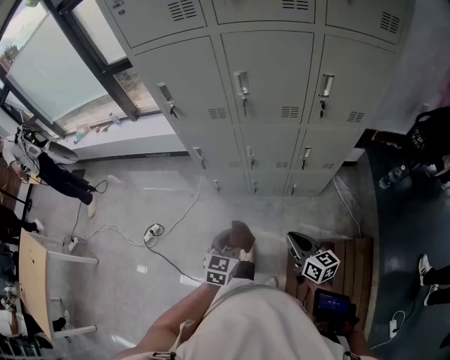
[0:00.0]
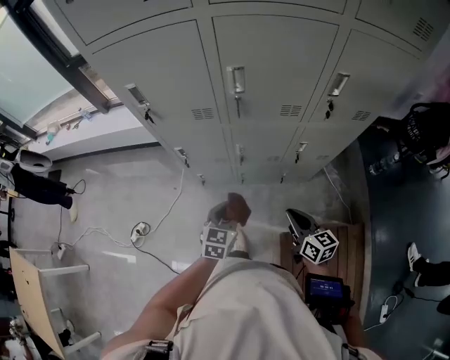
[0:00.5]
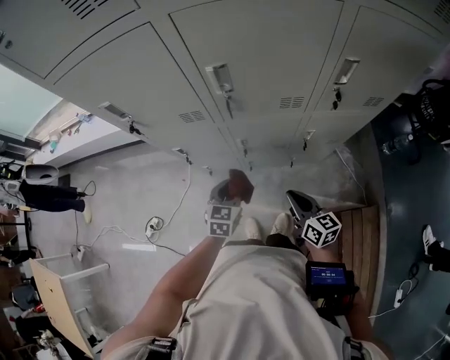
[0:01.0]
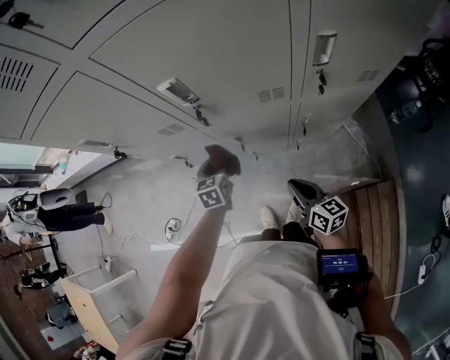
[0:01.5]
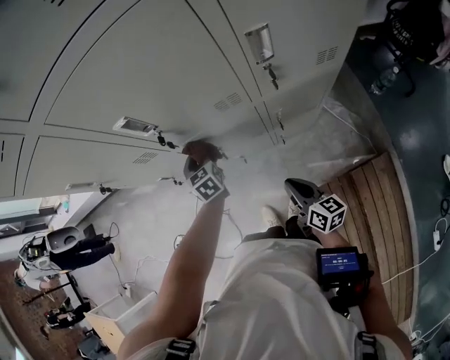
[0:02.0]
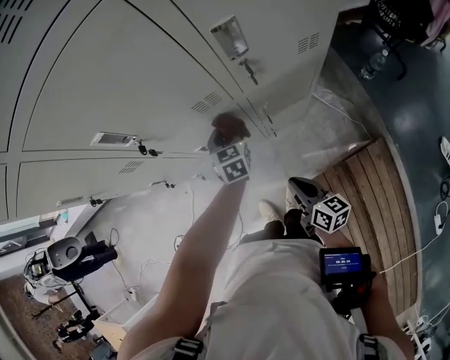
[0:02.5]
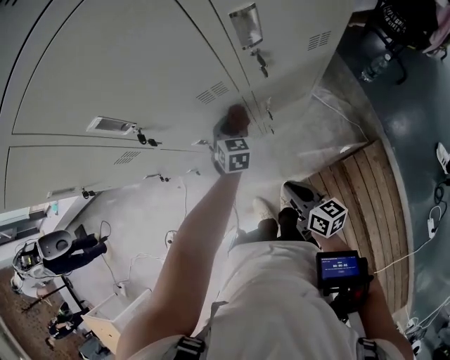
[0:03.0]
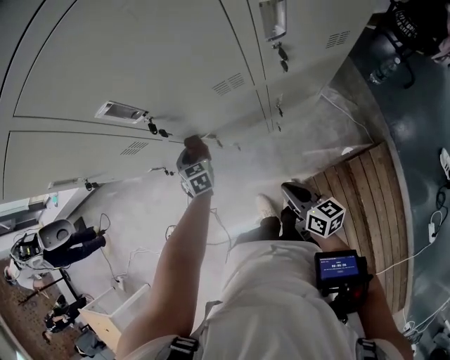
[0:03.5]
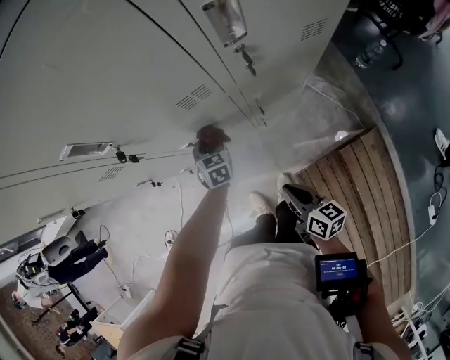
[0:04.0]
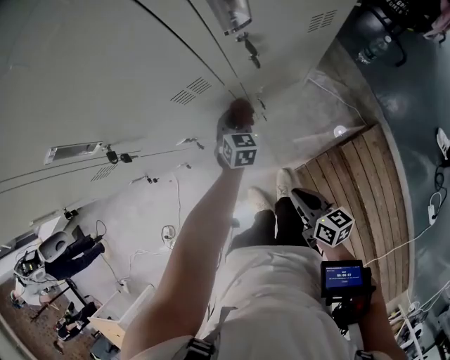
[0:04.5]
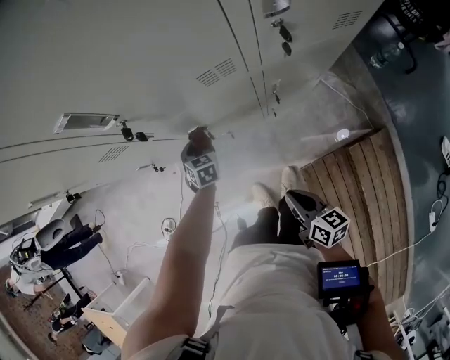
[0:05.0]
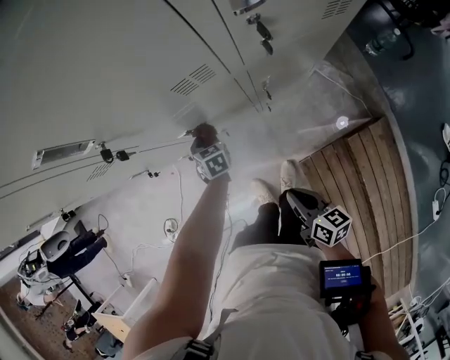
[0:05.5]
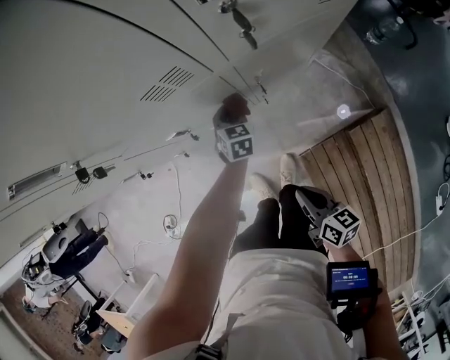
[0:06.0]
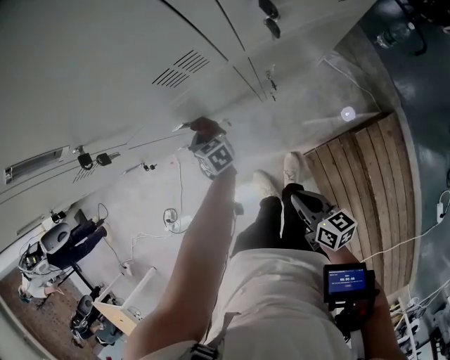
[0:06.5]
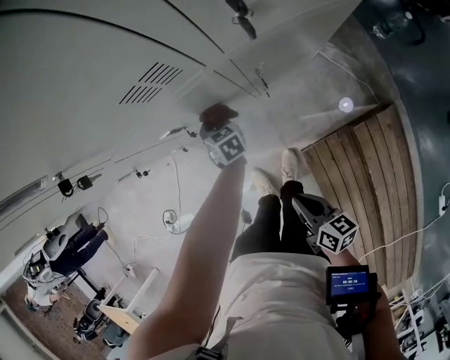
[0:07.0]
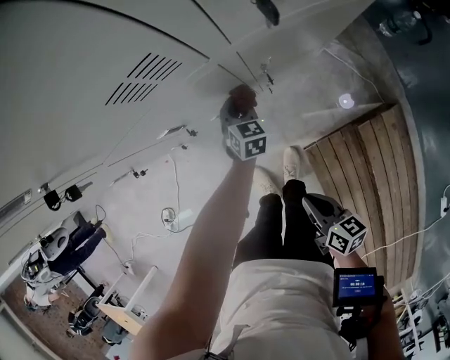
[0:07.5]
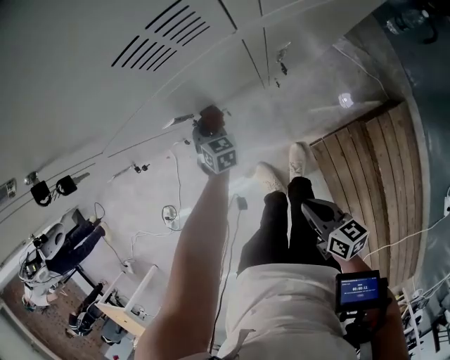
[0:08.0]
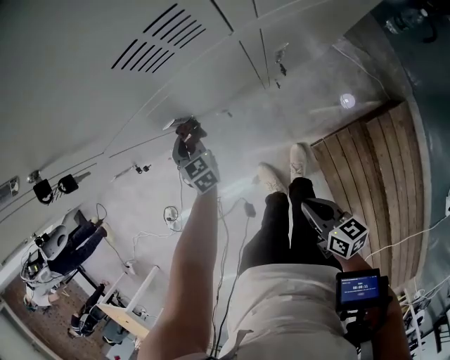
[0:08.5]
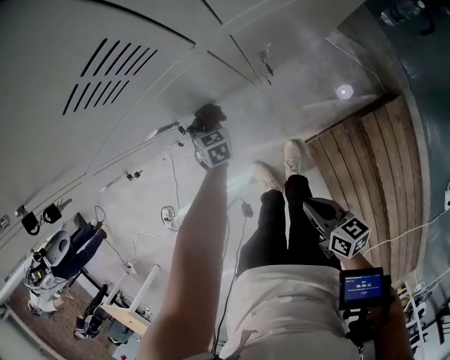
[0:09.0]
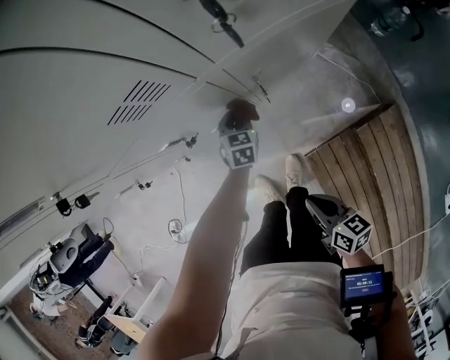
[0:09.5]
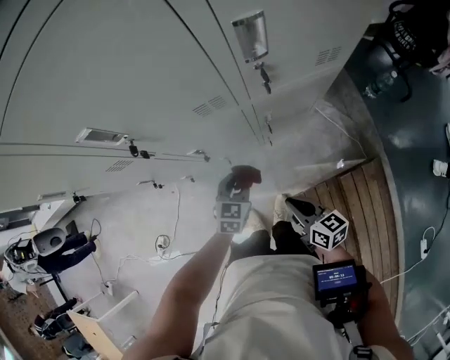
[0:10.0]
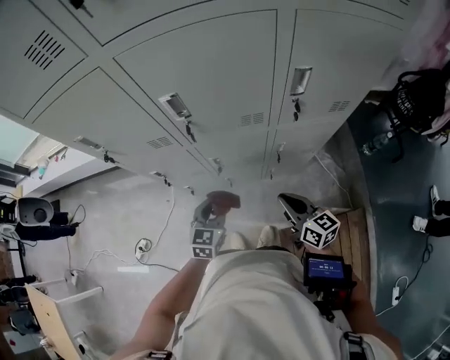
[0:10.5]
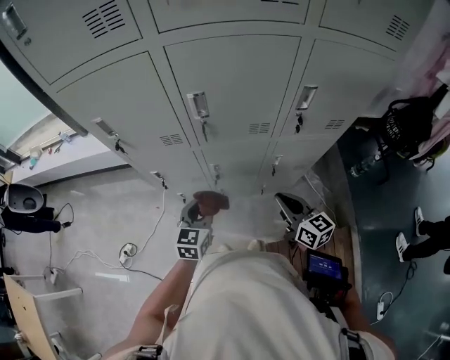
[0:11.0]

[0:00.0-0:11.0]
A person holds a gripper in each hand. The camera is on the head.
0:00.0 to 0:02.0: The left gripper heads forward, covering roughly 40 cm, and changes its angle by approximately 20 degrees; the right gripper shifts approximately 20 cm forward, and changes its angle by roughly 20 degrees.
0:02.0 to 0:03.5: The left gripper heads downward, covering about 10 cm, and goes to the right and returns, some 20 cm each way.
0:03.5 to 0:05.5: The left gripper goes left and right, some 25 cm each way, reversing 2 times, while the right gripper moves downward and backward, roughly 5 cm.
0:05.5 to 0:07.5: The left gripper moves left and right over about 20 cm, changing direction 2 times. The right gripper moves downward, roughly 5 cm.
0:07.5 to 0:09.0: The left gripper is displaced to the left and downward by about 15 cm.
0:09.0 to 0:11.0: The right gripper travels upward and forward by roughly 30 cm, and swivels some 40 degrees. Meanwhile the left gripper heads upward, covering about 40 cm, and tips its fingers upward by roughly 30 degrees.

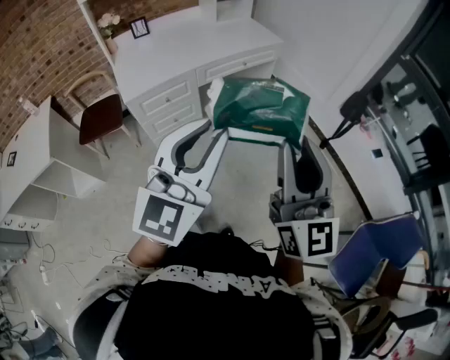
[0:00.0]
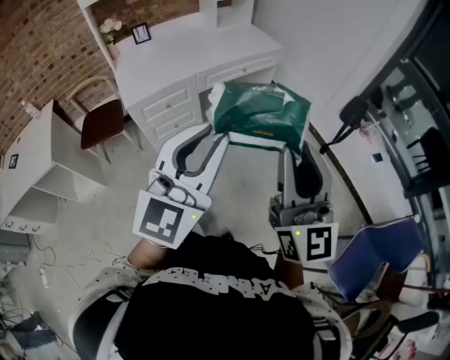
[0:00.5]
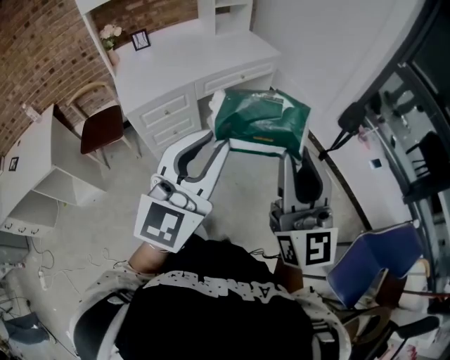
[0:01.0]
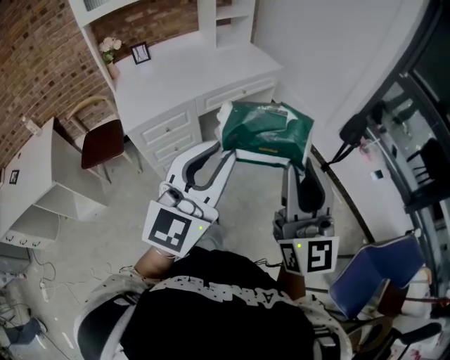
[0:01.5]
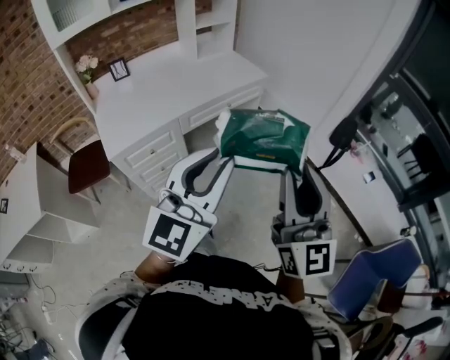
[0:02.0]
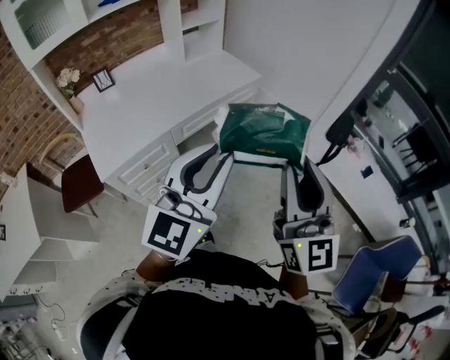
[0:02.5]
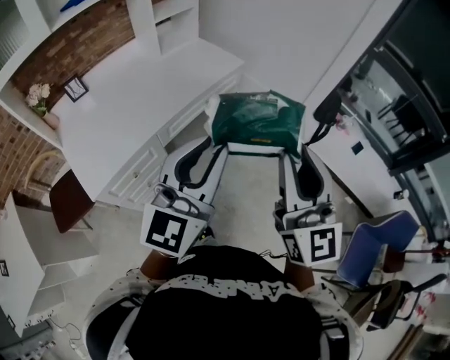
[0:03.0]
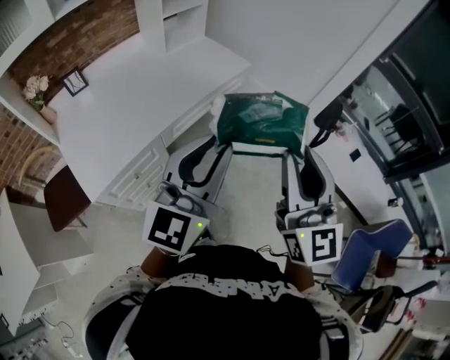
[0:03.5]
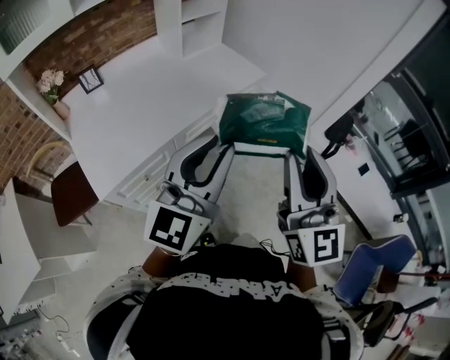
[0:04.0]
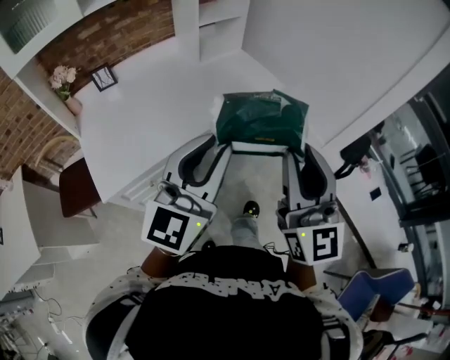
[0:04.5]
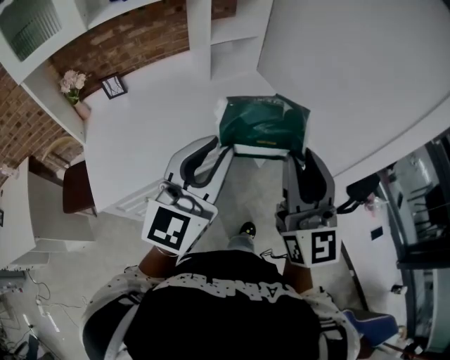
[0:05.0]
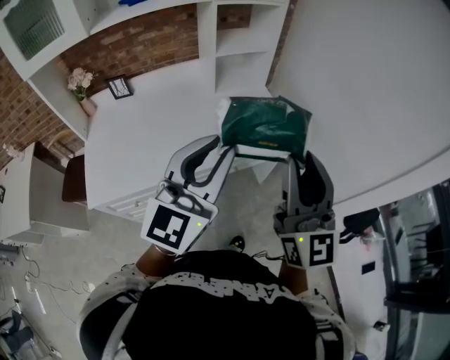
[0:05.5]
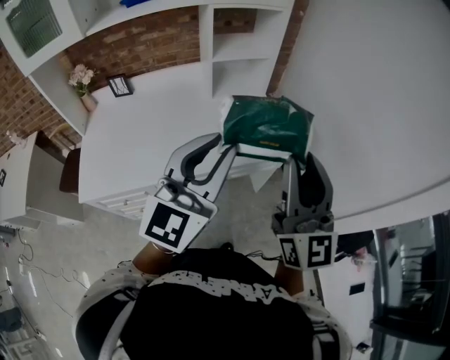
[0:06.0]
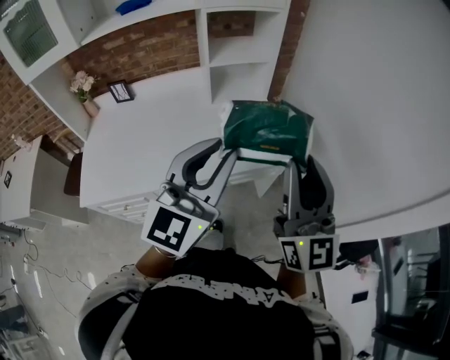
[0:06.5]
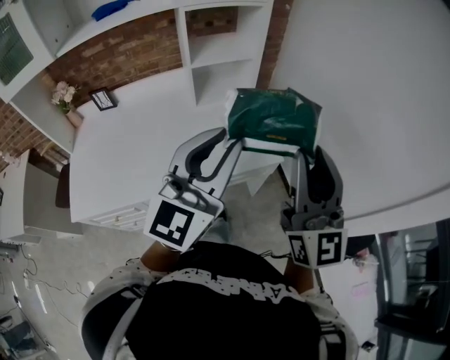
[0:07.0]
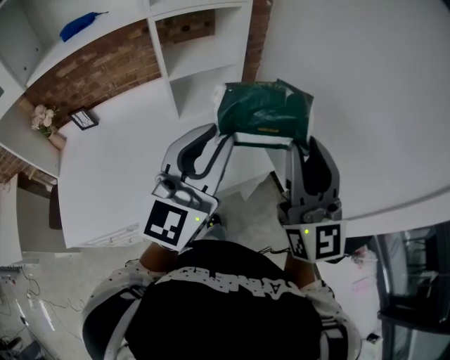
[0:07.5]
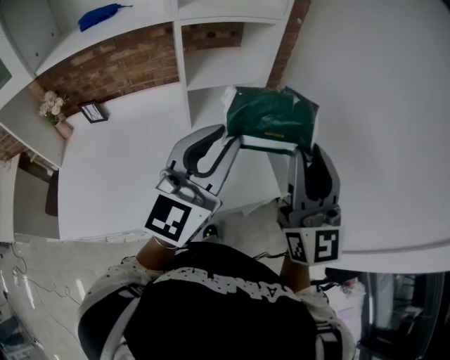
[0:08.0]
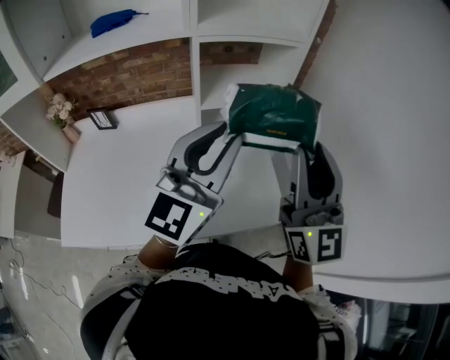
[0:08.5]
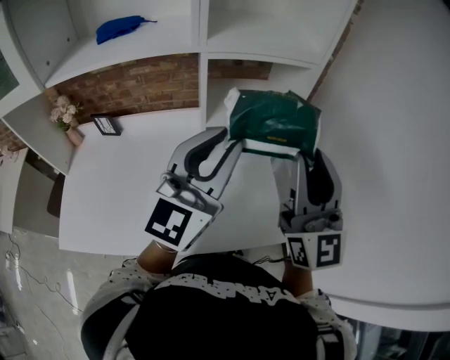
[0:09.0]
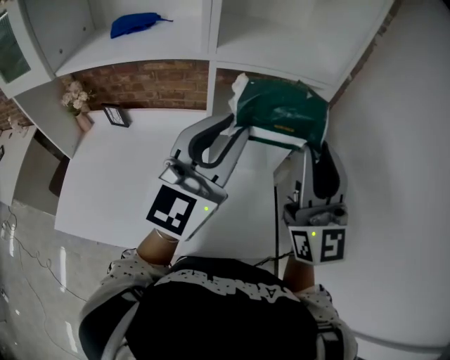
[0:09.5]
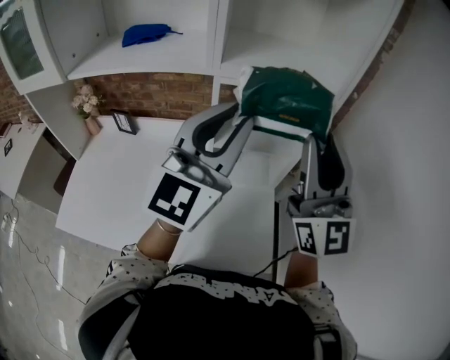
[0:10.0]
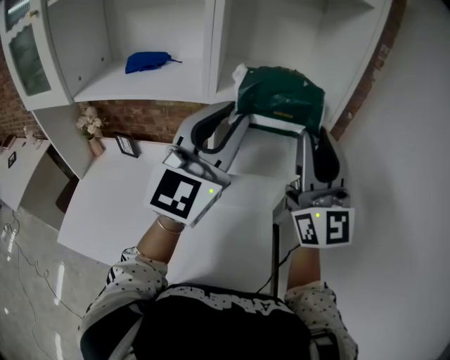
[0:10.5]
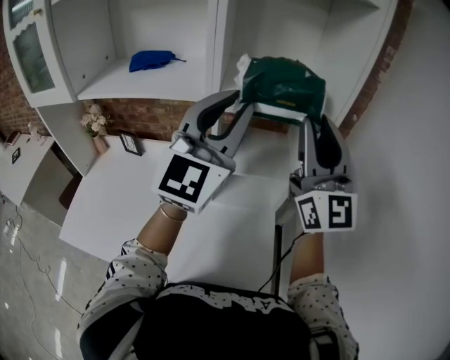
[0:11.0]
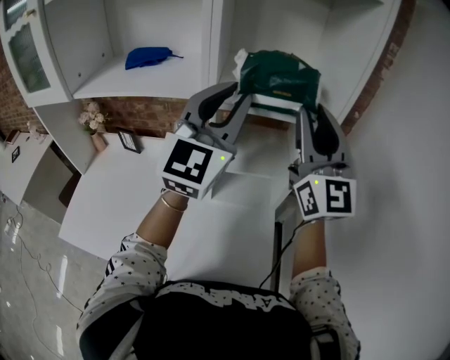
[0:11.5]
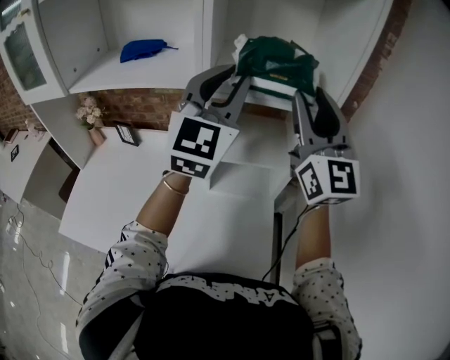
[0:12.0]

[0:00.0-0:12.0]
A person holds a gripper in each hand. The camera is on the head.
0:00.0 to 0:02.0: The two grippers go about 15 cm forward.
0:02.0 to 0:04.0: The two grippers go about 20 cm forward and to the left.
0:04.0 to 0:06.0: The right gripper shifts some 35 cm forward, and turns by about 30 degrees, while the left gripper moves forward and to the right, roughly 30 cm, and turns by roughly 30 degrees.
0:06.0 to 0:08.0: The grippers both shift forward by some 20 cm.
0:08.0 to 0:10.0: The grippers both shift forward and upward by about 20 cm. The left gripper rotates about 20 degrees. Meanwhile the right gripper swivels some 20 degrees.
0:10.0 to 0:12.0: The two grippers go approximately 10 cm forward.

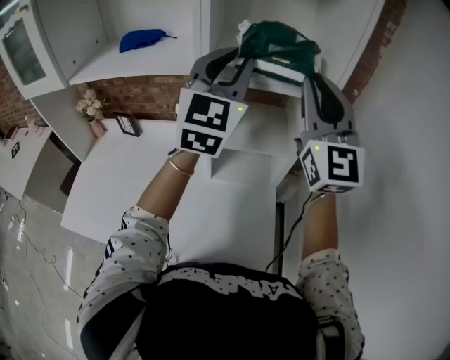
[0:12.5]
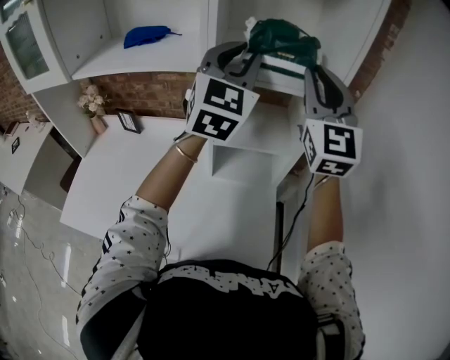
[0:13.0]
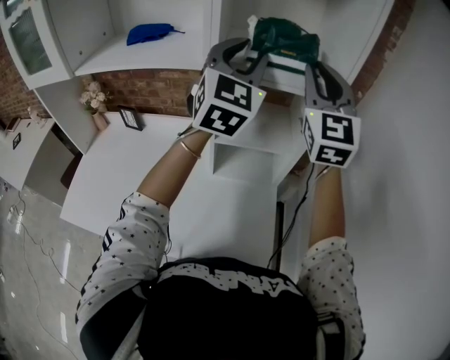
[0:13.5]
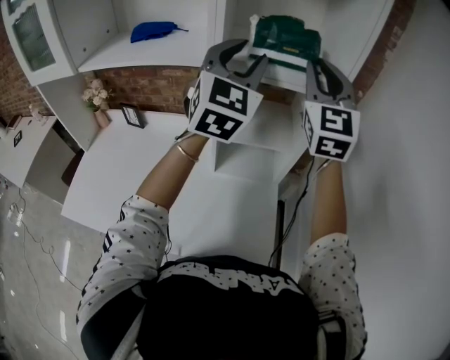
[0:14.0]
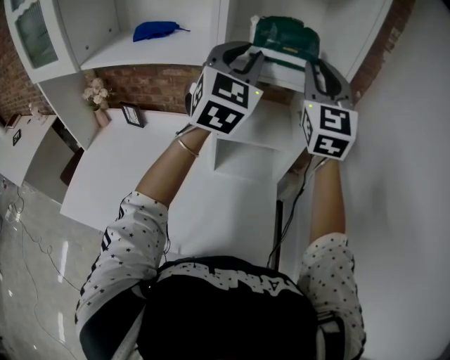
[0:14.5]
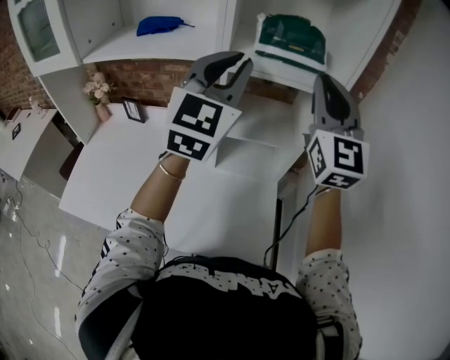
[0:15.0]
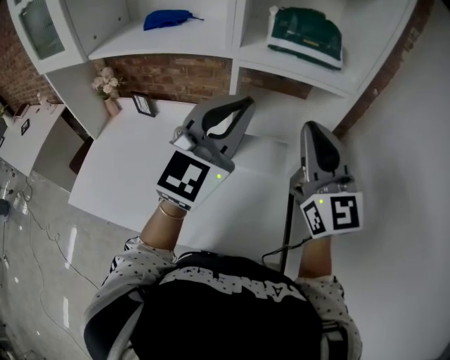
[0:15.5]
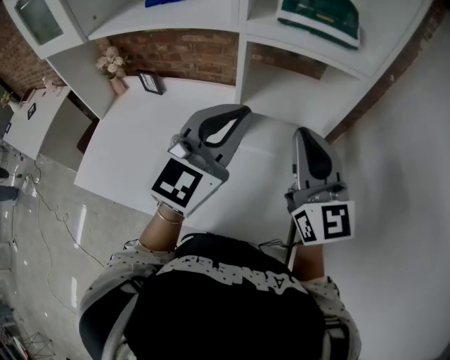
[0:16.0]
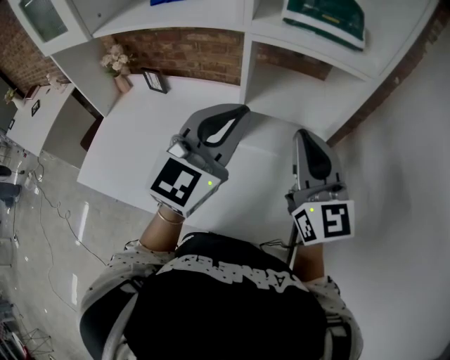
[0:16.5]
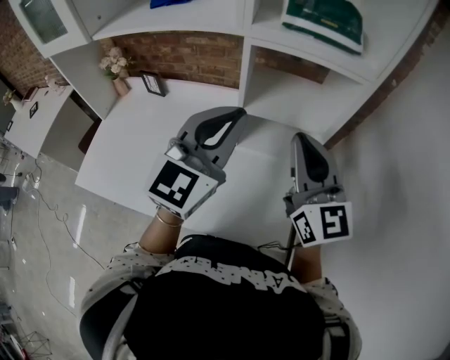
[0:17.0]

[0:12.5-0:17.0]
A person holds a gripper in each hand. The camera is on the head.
0:12.5 to 0:14.5: The right gripper heads forward, covering approximately 5 cm.
0:14.5 to 0:17.0: The left gripper heads backward and downward, covering about 20 cm. Meanwhile the right gripper travels downward and backward by some 20 cm, and changes its angle by approximately 30 degrees.
